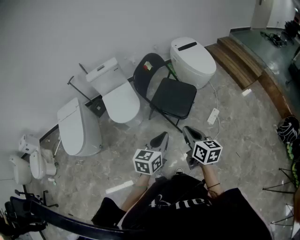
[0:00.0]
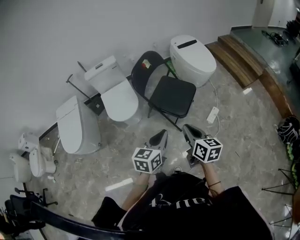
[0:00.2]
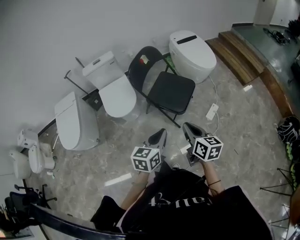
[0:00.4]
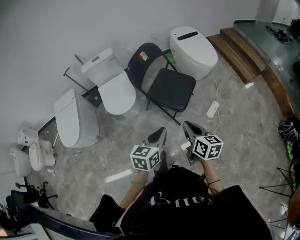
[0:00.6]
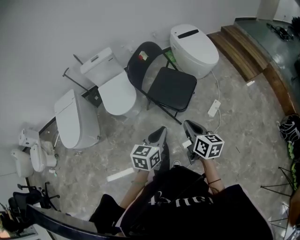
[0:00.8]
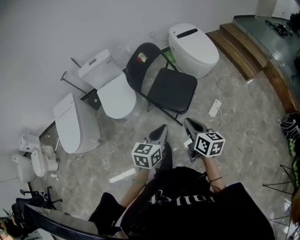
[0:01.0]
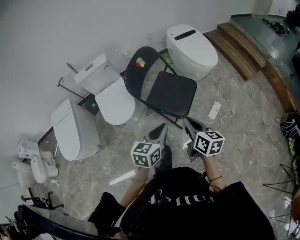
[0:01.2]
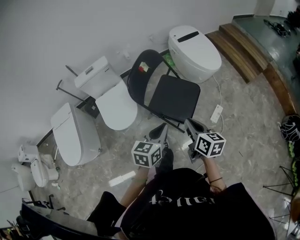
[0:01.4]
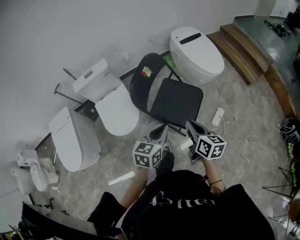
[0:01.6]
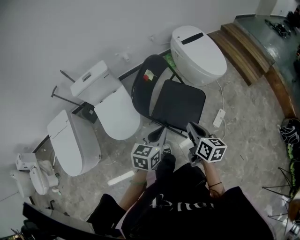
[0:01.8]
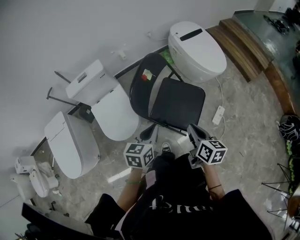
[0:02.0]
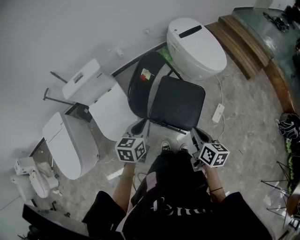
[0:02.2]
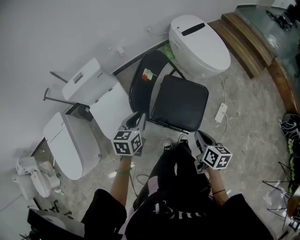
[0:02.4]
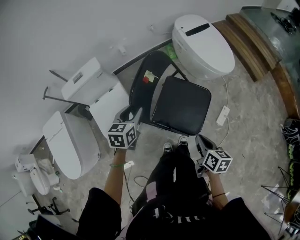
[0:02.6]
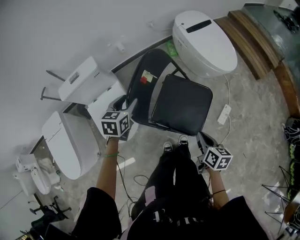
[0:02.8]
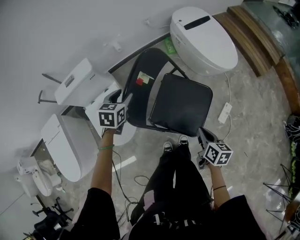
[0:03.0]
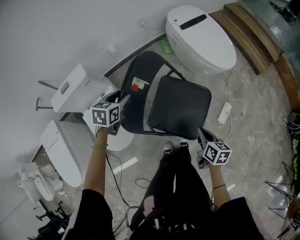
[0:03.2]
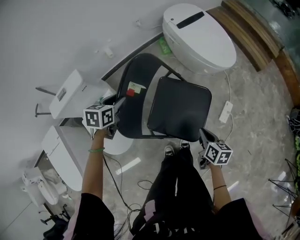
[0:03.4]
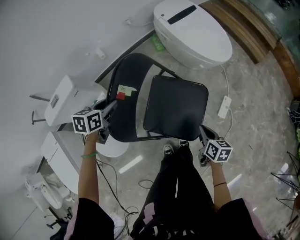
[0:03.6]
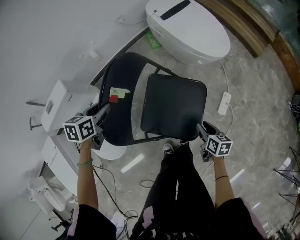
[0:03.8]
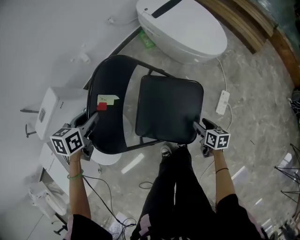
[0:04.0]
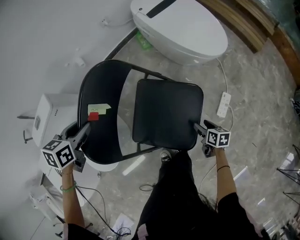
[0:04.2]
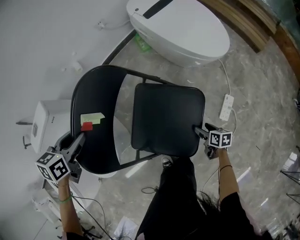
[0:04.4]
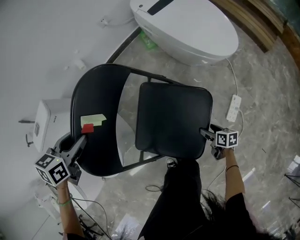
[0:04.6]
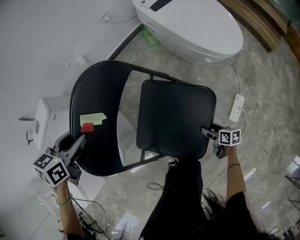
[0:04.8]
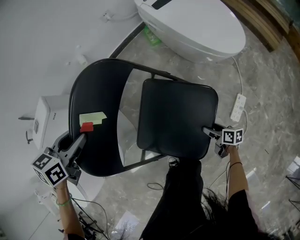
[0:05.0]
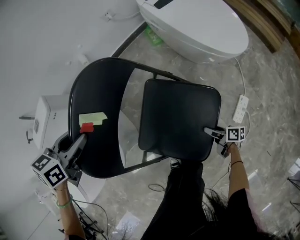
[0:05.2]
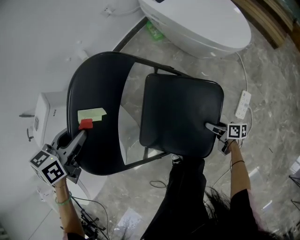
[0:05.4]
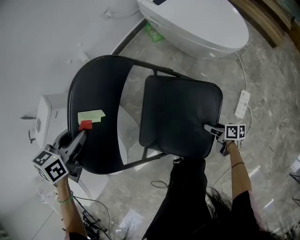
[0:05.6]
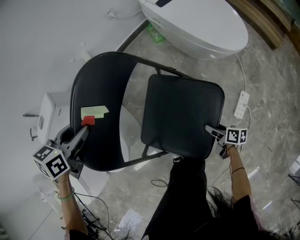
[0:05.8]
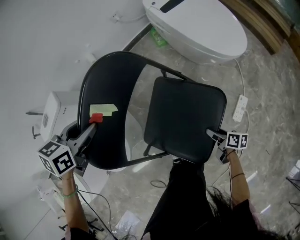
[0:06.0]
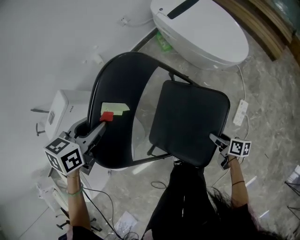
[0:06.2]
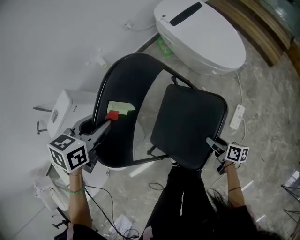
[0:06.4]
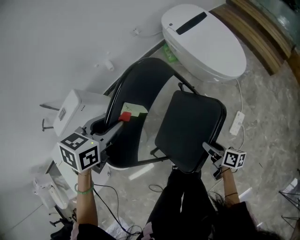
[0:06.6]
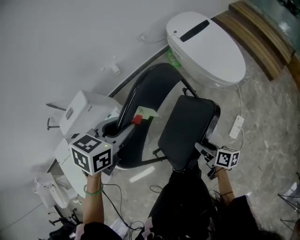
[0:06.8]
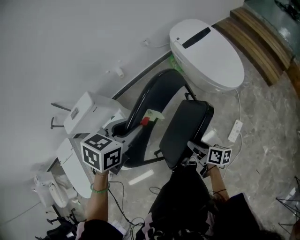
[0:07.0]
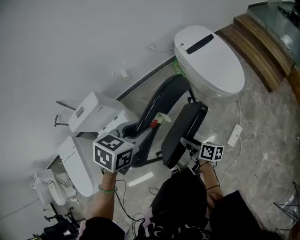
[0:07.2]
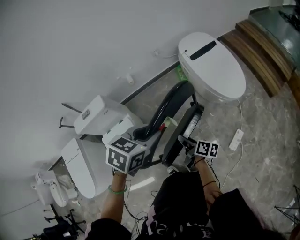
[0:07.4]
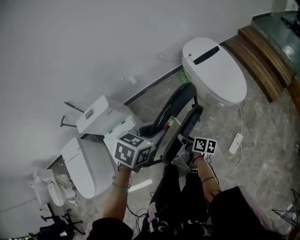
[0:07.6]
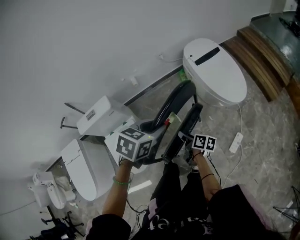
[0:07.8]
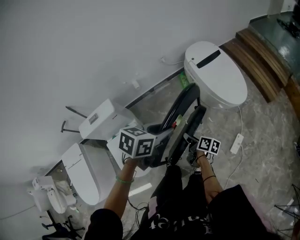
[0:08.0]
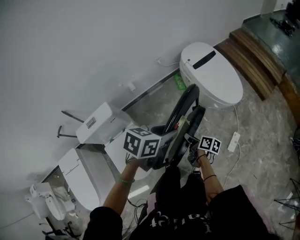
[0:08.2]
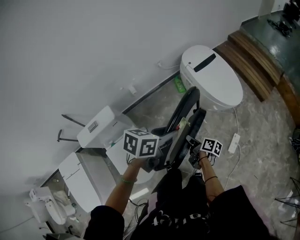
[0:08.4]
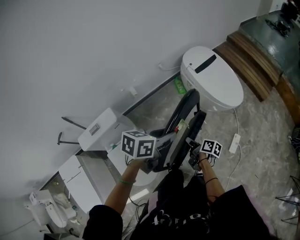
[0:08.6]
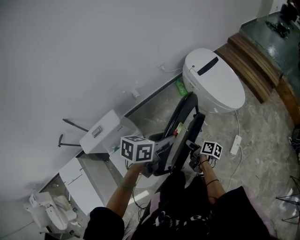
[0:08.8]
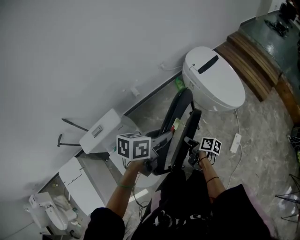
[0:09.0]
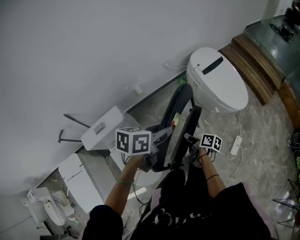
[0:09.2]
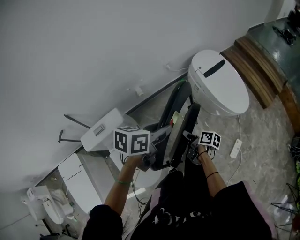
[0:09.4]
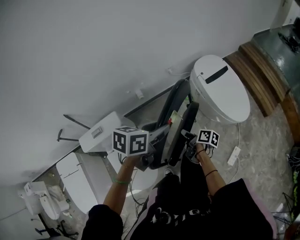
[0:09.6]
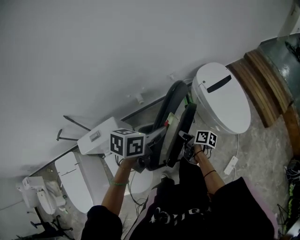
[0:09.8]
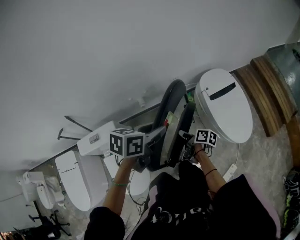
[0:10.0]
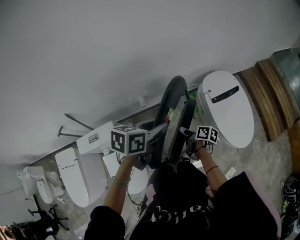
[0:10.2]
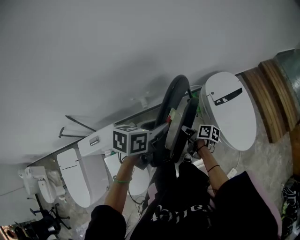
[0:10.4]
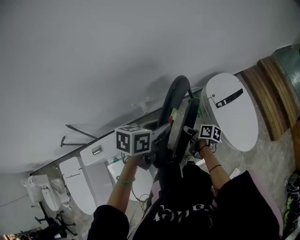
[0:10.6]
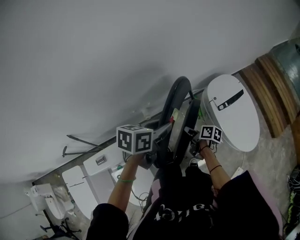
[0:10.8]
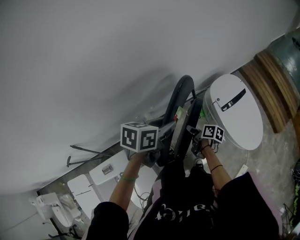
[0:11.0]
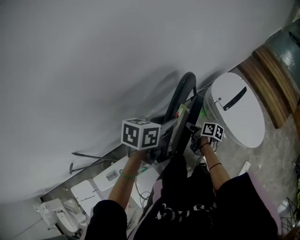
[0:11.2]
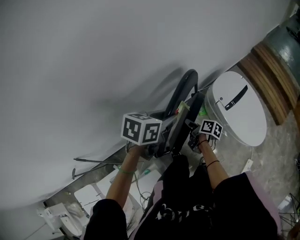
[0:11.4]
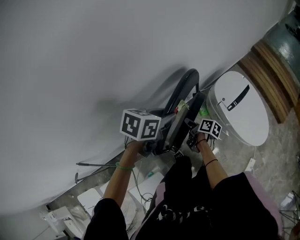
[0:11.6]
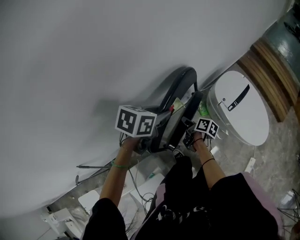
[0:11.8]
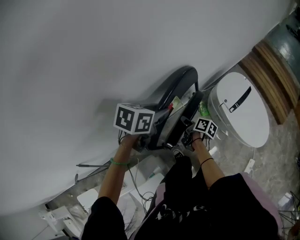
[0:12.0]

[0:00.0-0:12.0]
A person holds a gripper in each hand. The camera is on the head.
0:00.0 to 0:01.6: The grippers both shift forward by approximately 25 cm.
0:01.6 to 0:03.0: The right gripper goes roughly 25 cm downward and forward, while the left gripper moves forward, to the left and downward, about 40 cm, swivels approximately 20 degrees, and opens up.
0:03.0 to 0:04.4: The right gripper shifts roughly 35 cm downward and to the right, and opens up. Meanwhile the left gripper shifts approximately 10 cm forward and downward.
0:06.0 to 0:07.6: The left gripper is displaced upward and to the right by roughly 20 cm. The right gripper moves upward and to the left, some 35 cm, and closes.
0:07.6 to 0:09.0: The two grippers go some 15 cm to the left. The left gripper rotates about 30 degrees.
0:09.0 to 0:10.4: The two grippers go about 30 cm forward.
0:10.4 to 0:12.0: Both grippers move forward and to the left, approximately 30 cm. The left gripper turns by roughly 20 degrees. The right gripper turns by about 30 degrees.

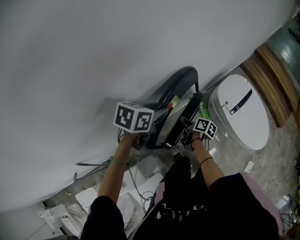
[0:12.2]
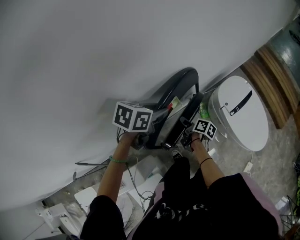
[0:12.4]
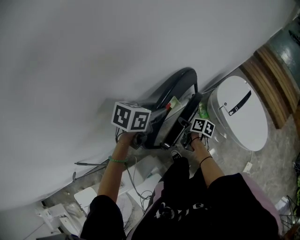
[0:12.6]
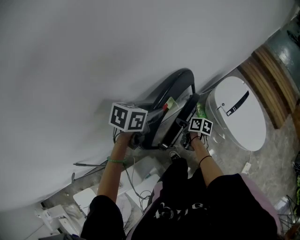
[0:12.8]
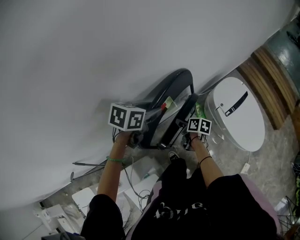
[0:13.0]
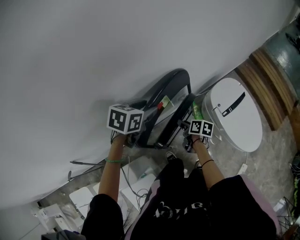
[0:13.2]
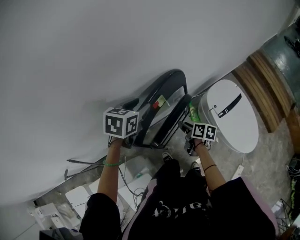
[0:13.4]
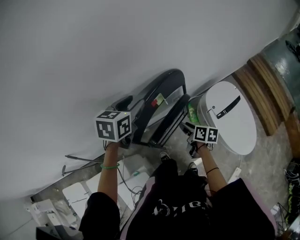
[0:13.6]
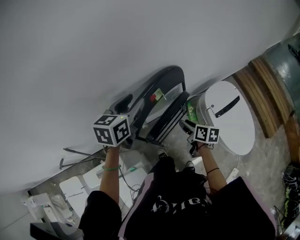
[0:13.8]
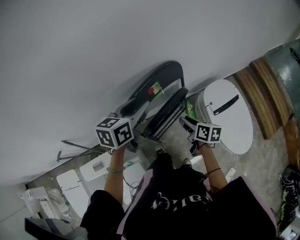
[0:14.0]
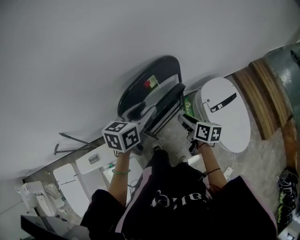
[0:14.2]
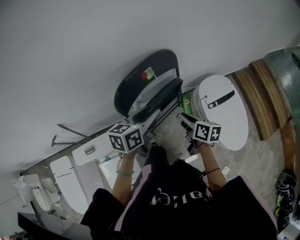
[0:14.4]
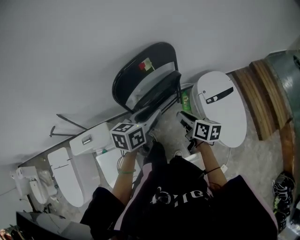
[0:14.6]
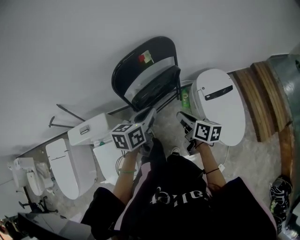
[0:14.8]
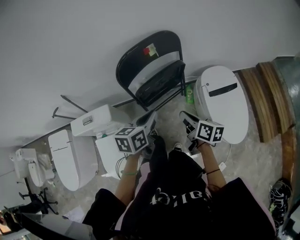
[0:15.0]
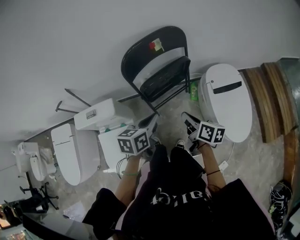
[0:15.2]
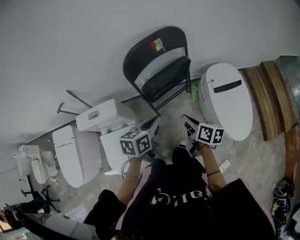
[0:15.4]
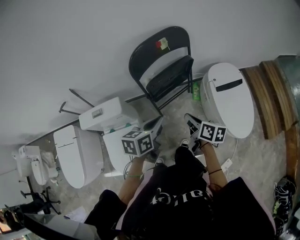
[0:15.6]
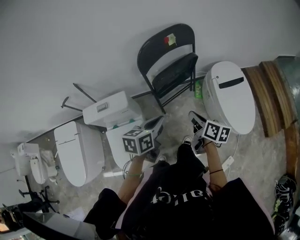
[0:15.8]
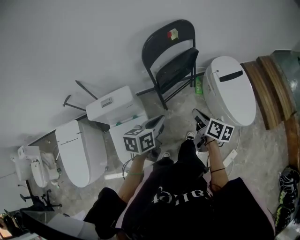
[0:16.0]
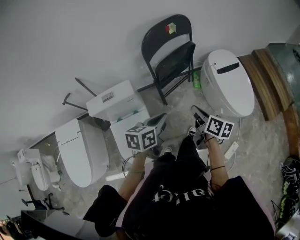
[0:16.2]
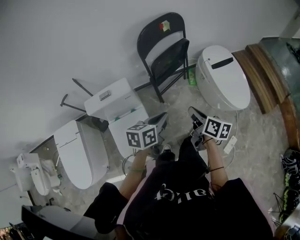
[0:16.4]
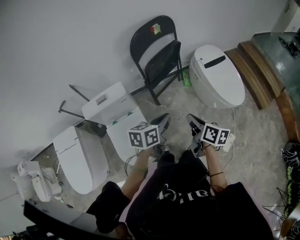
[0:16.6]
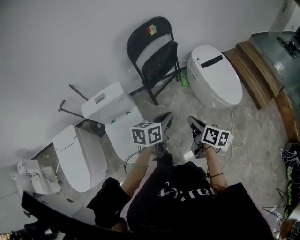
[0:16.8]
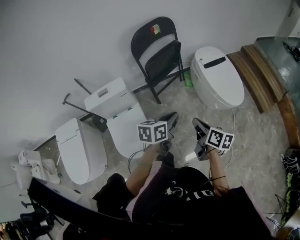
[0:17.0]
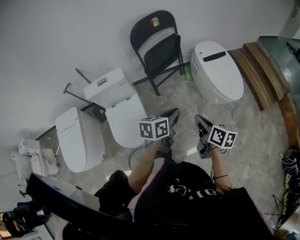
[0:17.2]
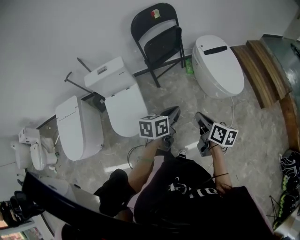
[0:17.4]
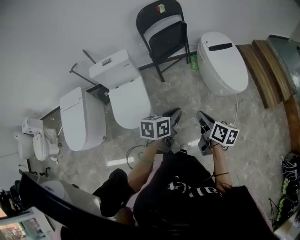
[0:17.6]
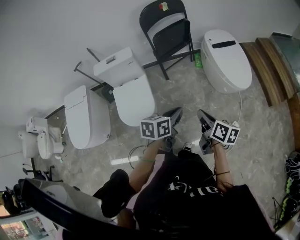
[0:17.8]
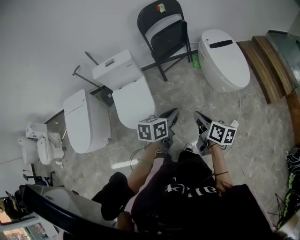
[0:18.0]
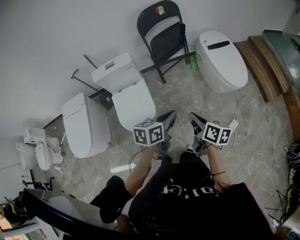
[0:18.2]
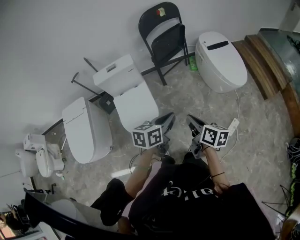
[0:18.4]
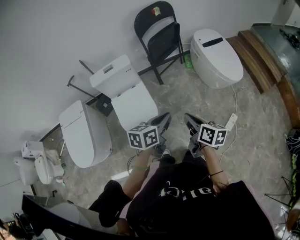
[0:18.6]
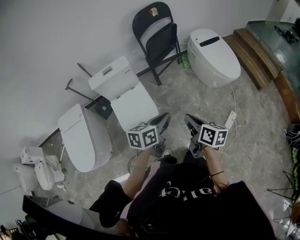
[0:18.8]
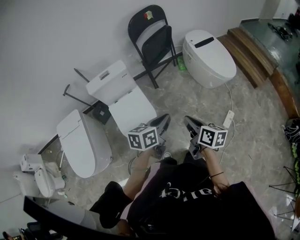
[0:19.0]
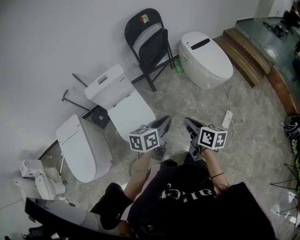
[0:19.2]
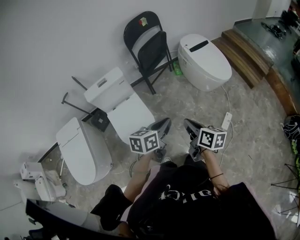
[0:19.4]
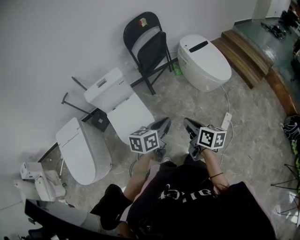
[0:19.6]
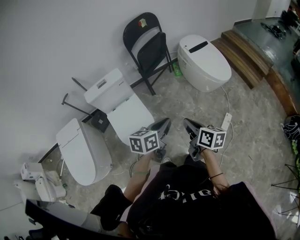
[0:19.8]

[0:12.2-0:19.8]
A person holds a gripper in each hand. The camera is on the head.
0:12.2 to 0:13.8: The left gripper shifts some 10 cm upward, changes its angle by roughly 30 degrees, and opens. Meanwhile the right gripper shifts approximately 15 cm upward, to the right and backward, and swivels roughly 30 degrees.
0:13.8 to 0:15.2: Both grippers move backward, about 30 cm. The right gripper closes up. Meanwhile the left gripper rotates roughly 20 degrees, and closes its fingers.
0:15.2 to 0:16.8: The grippers both shift backward by some 30 cm. The left gripper rotates roughly 20 degrees.
0:16.8 to 0:18.2: The grippers both shift backward by about 20 cm.
0:18.2 to 0:19.8: The grippers both shift to the left by approximately 10 cm.

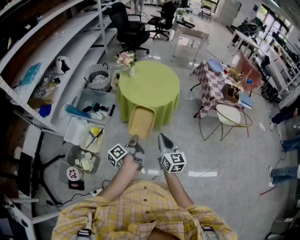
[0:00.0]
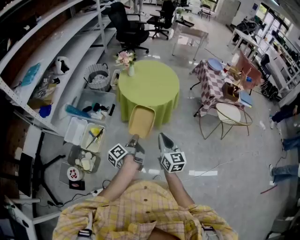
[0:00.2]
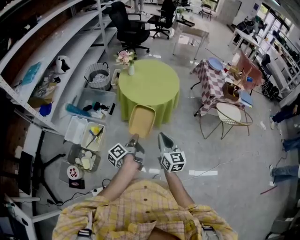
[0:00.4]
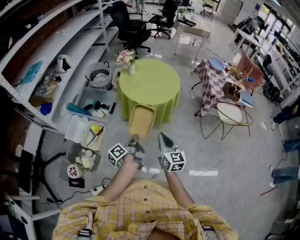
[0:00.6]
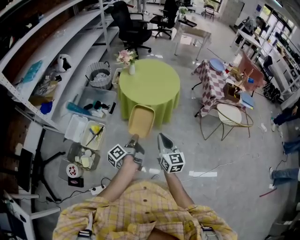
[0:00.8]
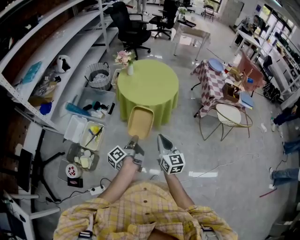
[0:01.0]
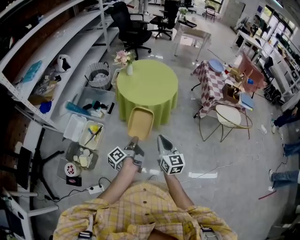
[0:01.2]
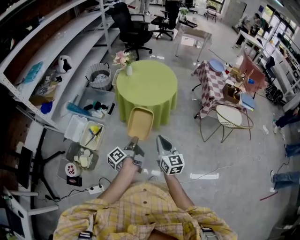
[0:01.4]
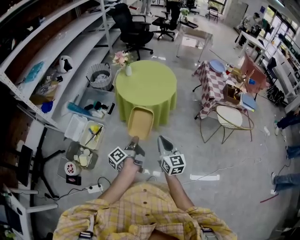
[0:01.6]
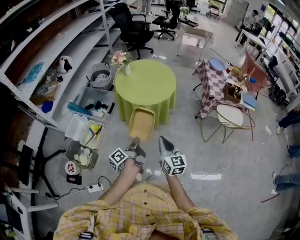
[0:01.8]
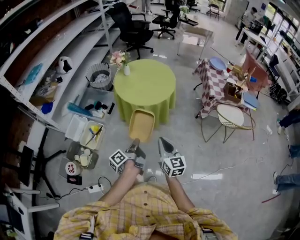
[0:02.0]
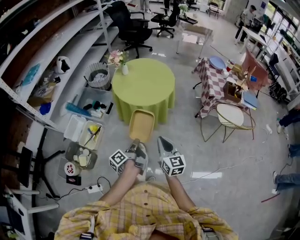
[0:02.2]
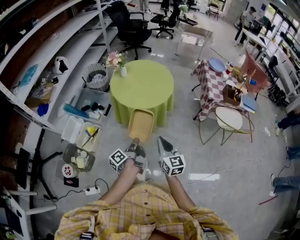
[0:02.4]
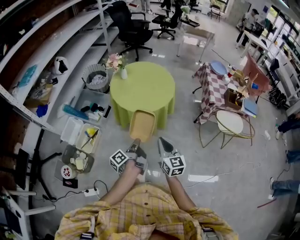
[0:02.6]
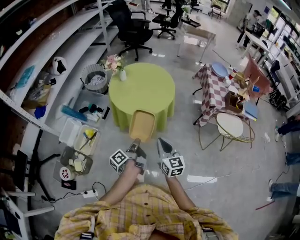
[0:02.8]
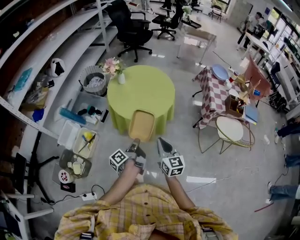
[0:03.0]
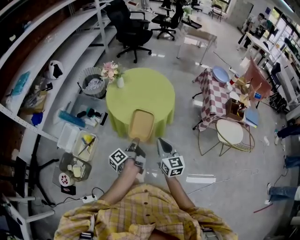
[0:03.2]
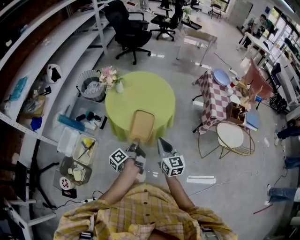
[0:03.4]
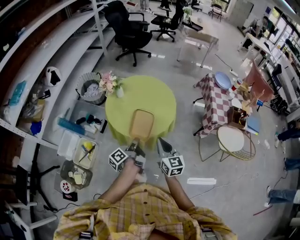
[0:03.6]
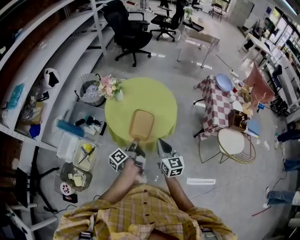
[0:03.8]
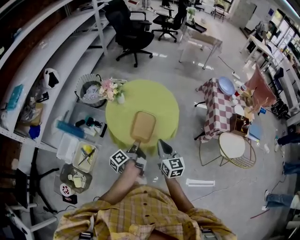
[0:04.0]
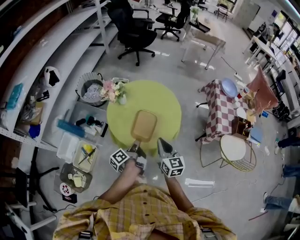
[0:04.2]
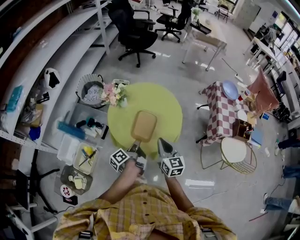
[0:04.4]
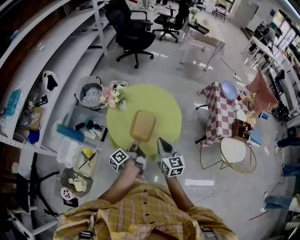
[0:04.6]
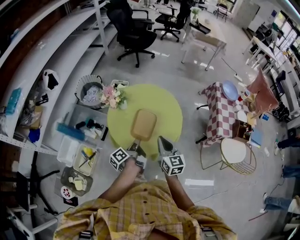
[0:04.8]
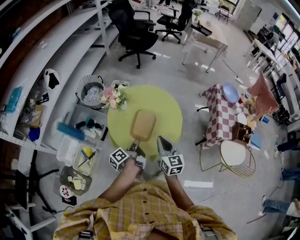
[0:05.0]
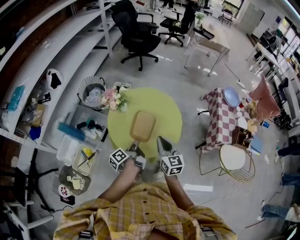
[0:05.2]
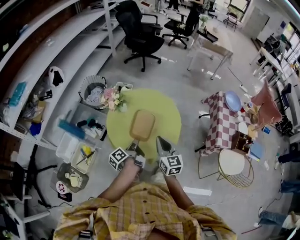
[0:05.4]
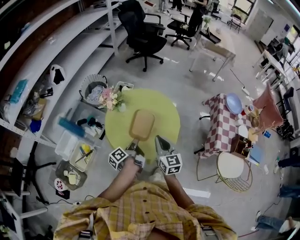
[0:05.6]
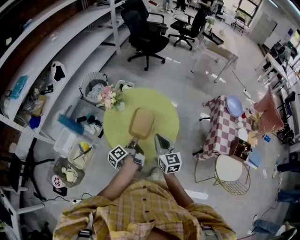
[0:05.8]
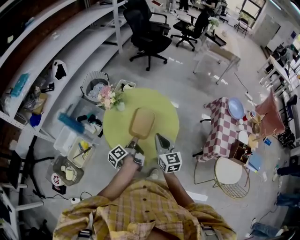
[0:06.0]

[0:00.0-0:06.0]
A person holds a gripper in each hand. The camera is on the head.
0:00.0 to 0:01.6: The right gripper changes place by some 10 cm.
0:01.6 to 0:03.0: The right gripper ends up approximately 20 cm from where it was.
0:03.0 to 0:04.4: The right gripper moves roughly 30 cm.
0:04.4 to 0:06.0: The right gripper changes place by approximately 10 cm.
